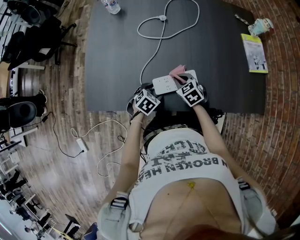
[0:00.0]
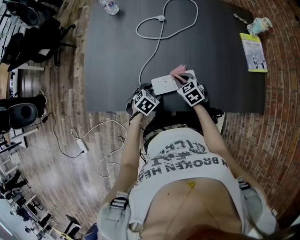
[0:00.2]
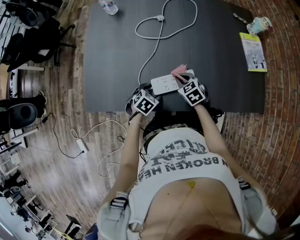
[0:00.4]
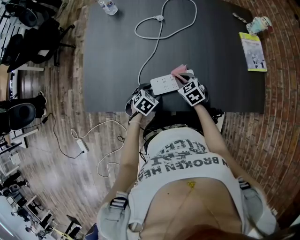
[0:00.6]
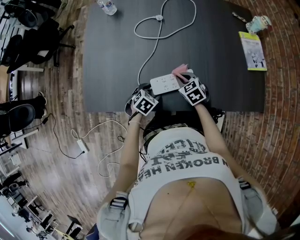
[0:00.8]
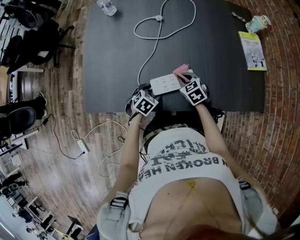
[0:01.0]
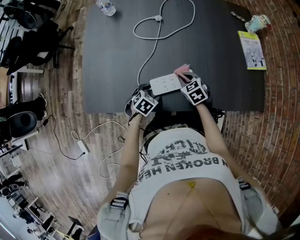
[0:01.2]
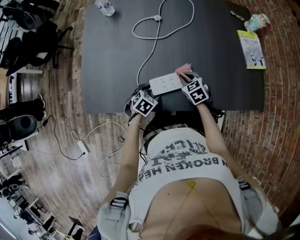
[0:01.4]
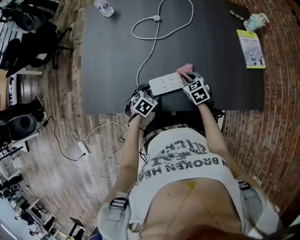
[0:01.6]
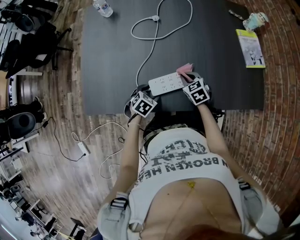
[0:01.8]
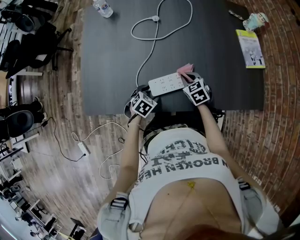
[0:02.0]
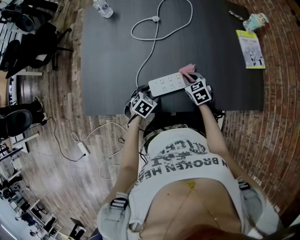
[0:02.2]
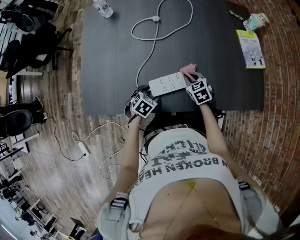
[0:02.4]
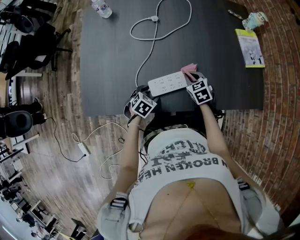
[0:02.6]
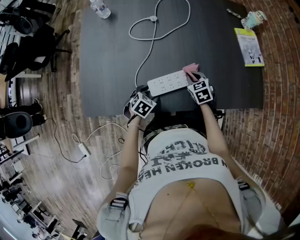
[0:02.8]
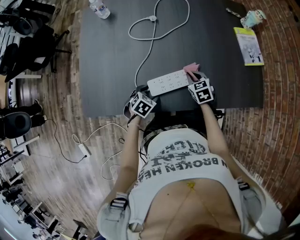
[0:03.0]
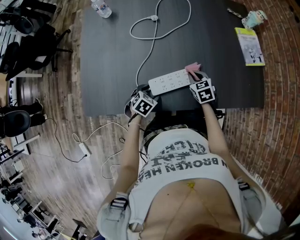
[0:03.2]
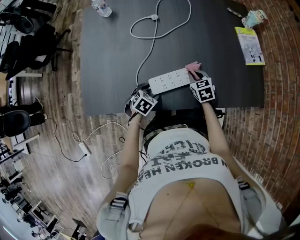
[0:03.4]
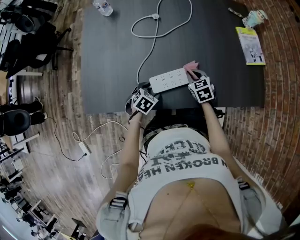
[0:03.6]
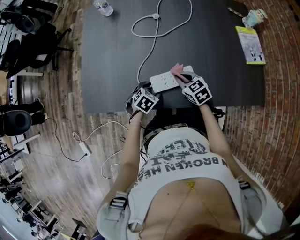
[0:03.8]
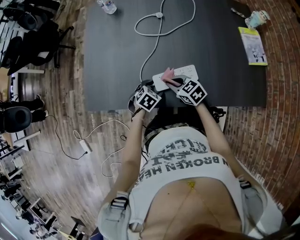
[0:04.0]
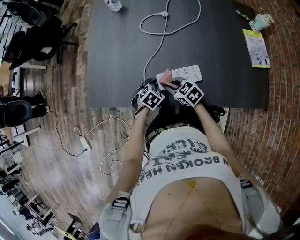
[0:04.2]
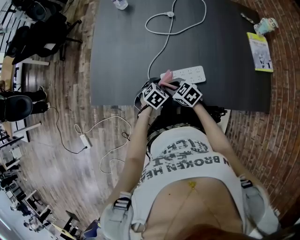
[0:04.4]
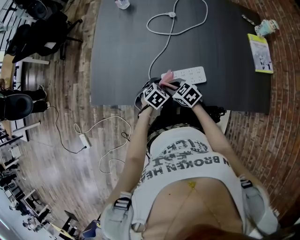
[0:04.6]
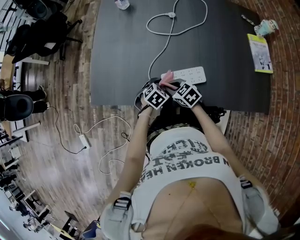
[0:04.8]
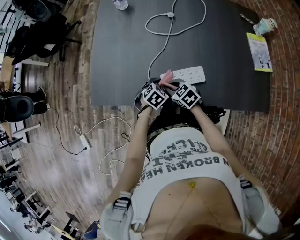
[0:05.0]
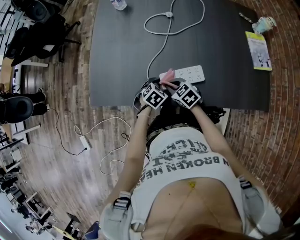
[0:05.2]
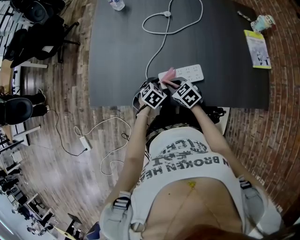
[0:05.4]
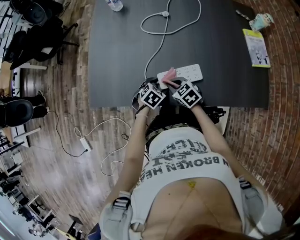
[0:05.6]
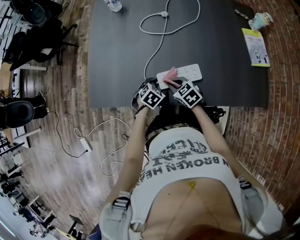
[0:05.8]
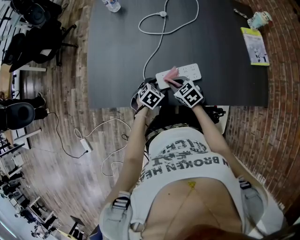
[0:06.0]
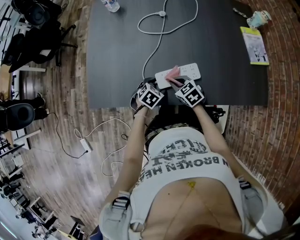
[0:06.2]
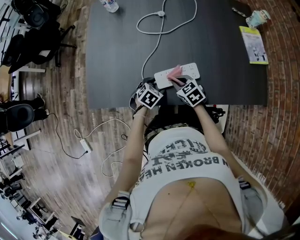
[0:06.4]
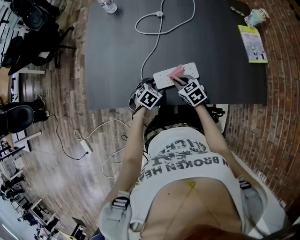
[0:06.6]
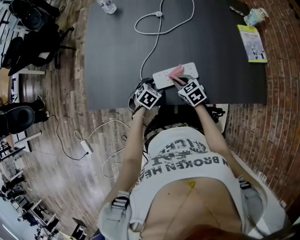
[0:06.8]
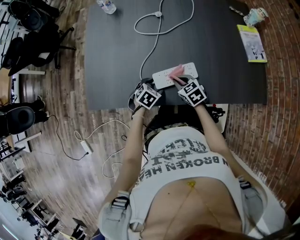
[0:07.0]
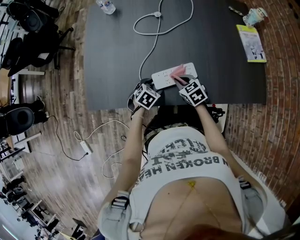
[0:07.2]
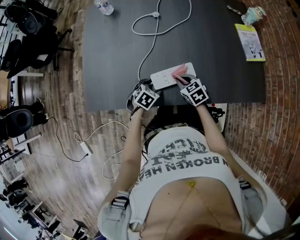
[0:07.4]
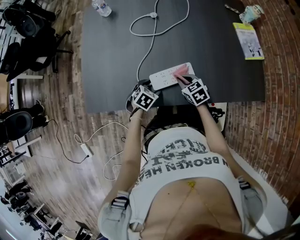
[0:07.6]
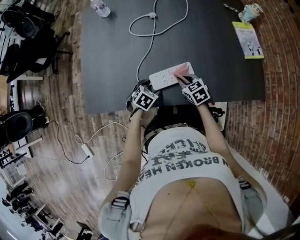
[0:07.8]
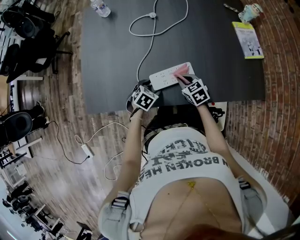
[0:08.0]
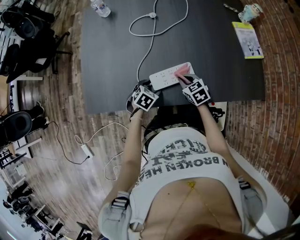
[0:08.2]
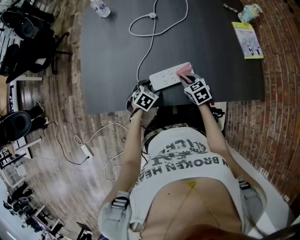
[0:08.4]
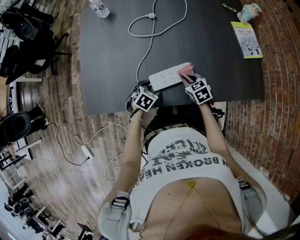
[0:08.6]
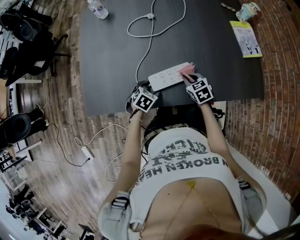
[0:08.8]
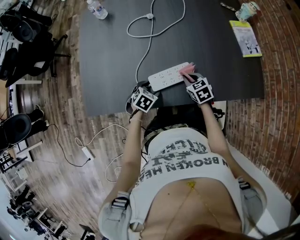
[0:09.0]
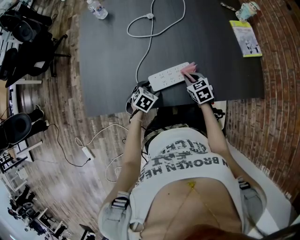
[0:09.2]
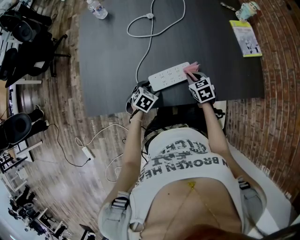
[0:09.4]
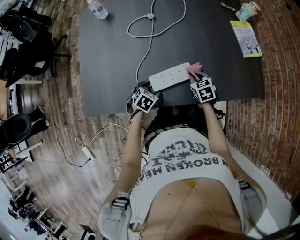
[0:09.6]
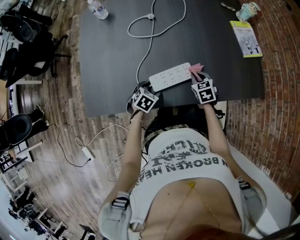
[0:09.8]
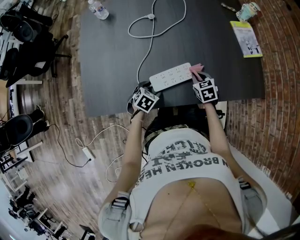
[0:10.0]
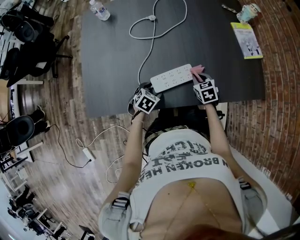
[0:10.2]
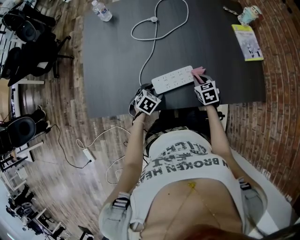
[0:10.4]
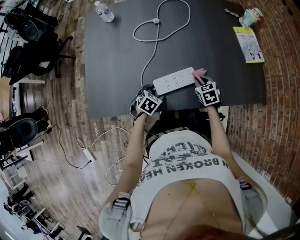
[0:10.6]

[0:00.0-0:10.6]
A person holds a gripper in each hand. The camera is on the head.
0:00.0 to 0:01.6: The right gripper heads to the right, covering roughly 5 cm.
0:01.6 to 0:03.0: The grippers make only small movements.
0:03.0 to 0:04.6: The right gripper shifts by about 20 cm, and rotates about 40 degrees.
0:04.6 to 0:06.0: The grippers move only a little.
0:06.0 to 0:07.6: The right gripper travels to the right by some 10 cm.
0:07.6 to 0:09.0: The grippers stay close to where they were, moving slightly.
0:09.0 to 0:10.6: The grippers make only small movements.

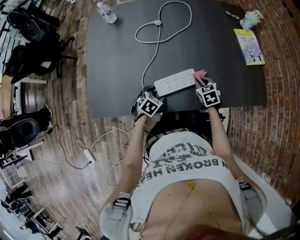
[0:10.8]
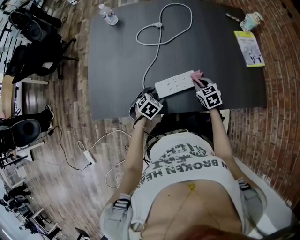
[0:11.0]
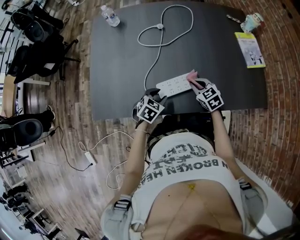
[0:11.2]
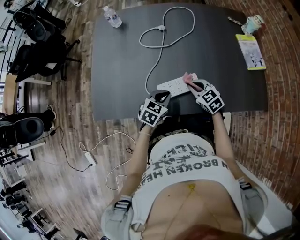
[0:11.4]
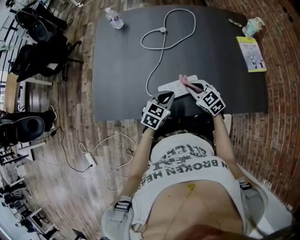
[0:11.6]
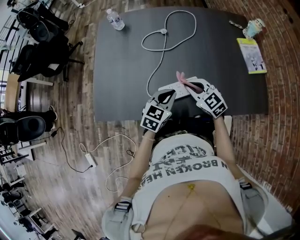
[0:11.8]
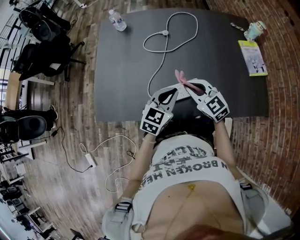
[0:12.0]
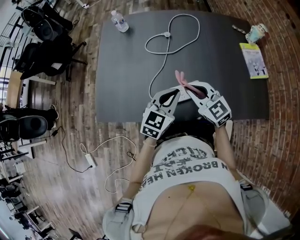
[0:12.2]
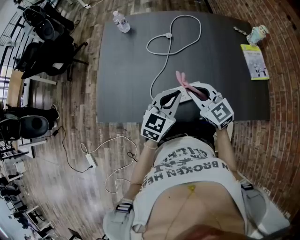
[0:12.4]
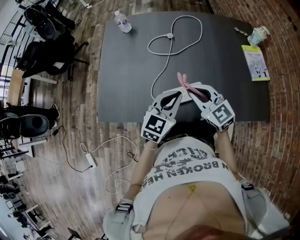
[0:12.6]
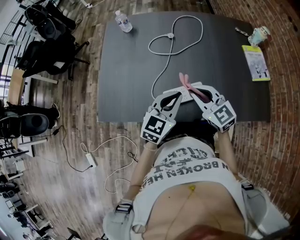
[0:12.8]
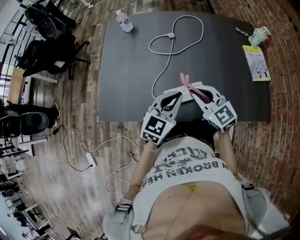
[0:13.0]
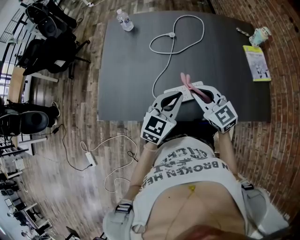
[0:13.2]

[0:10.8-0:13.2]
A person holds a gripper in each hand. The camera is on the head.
0:10.8 to 0:12.0: The left gripper moves upward, approximately 20 cm, points its fingers approximately 40 degrees further upward, and closes up; the right gripper shifts some 20 cm upward and to the left, and angles its fingers upward, by some 30 degrees.
0:12.0 to 0:13.2: The left gripper heads upward, covering roughly 5 cm.

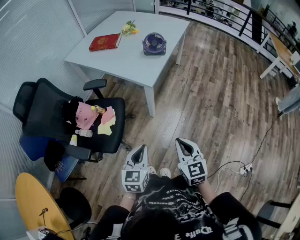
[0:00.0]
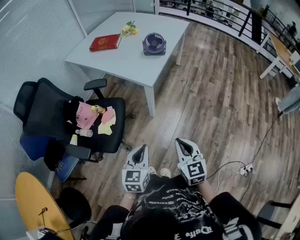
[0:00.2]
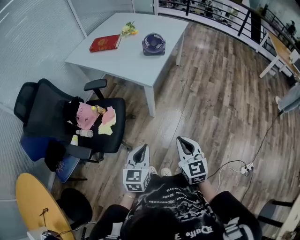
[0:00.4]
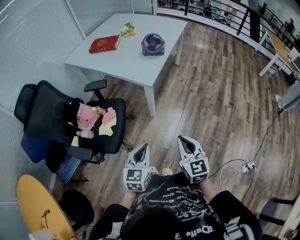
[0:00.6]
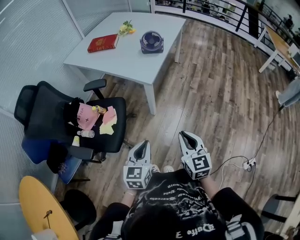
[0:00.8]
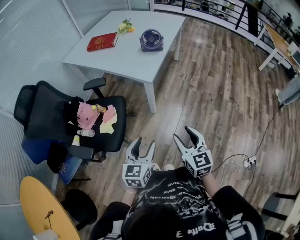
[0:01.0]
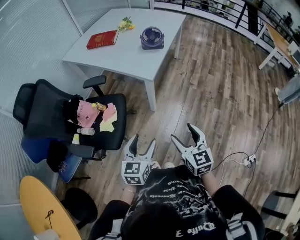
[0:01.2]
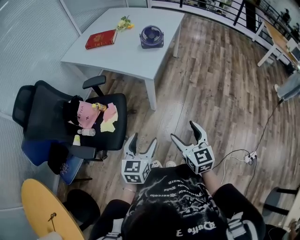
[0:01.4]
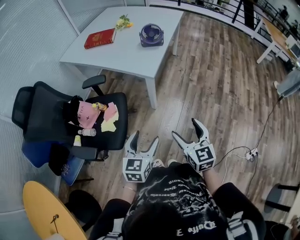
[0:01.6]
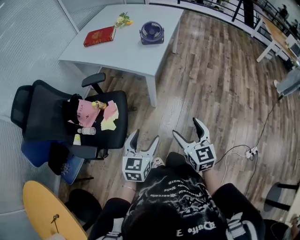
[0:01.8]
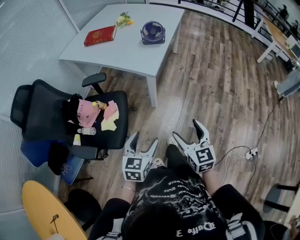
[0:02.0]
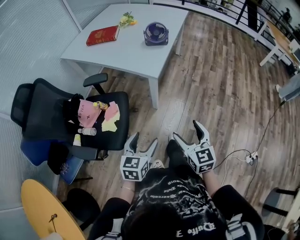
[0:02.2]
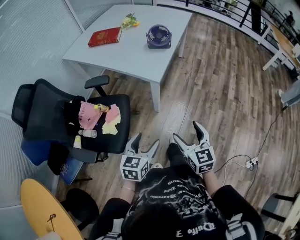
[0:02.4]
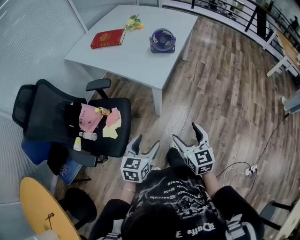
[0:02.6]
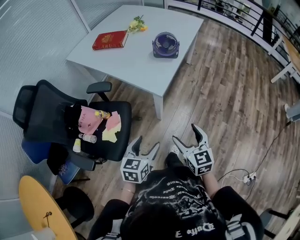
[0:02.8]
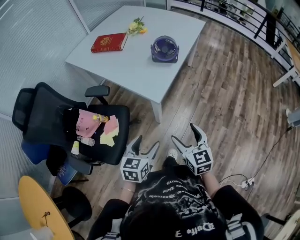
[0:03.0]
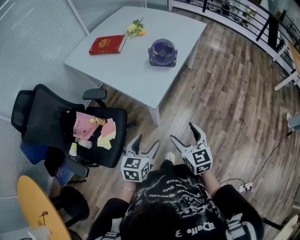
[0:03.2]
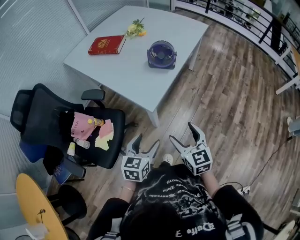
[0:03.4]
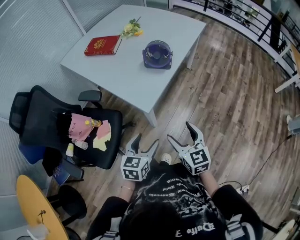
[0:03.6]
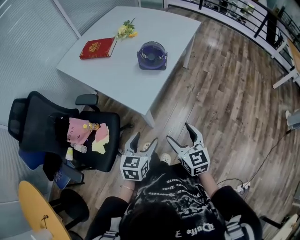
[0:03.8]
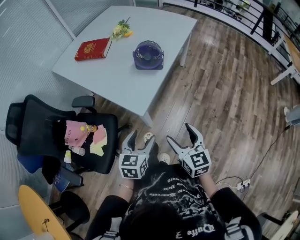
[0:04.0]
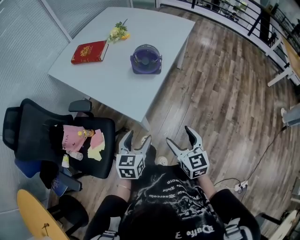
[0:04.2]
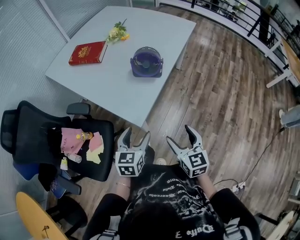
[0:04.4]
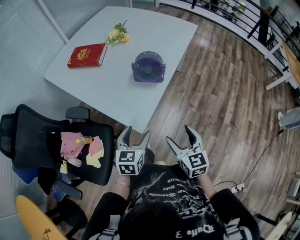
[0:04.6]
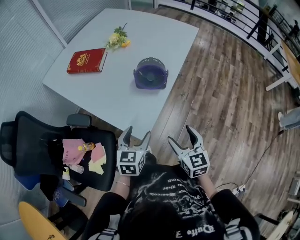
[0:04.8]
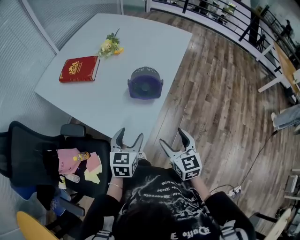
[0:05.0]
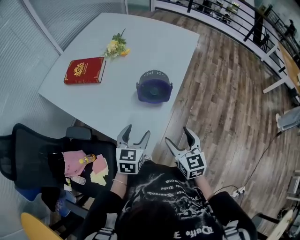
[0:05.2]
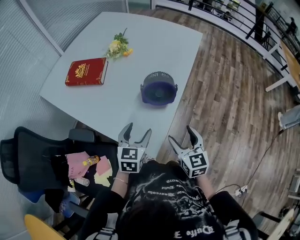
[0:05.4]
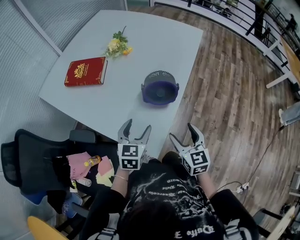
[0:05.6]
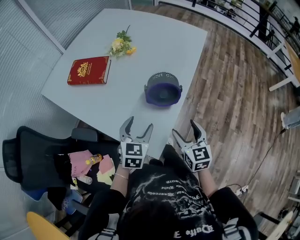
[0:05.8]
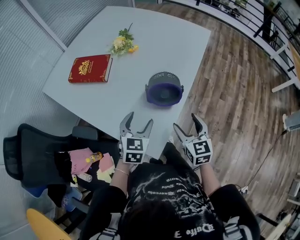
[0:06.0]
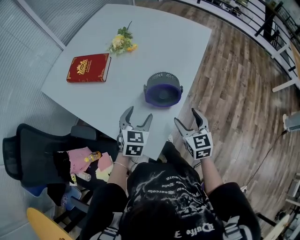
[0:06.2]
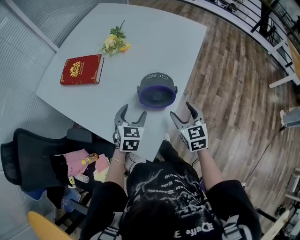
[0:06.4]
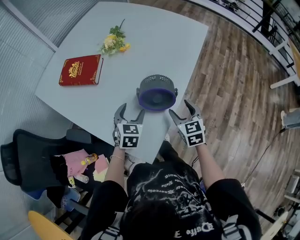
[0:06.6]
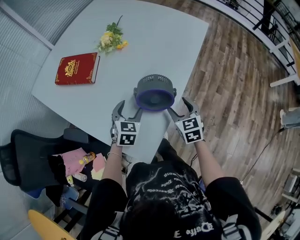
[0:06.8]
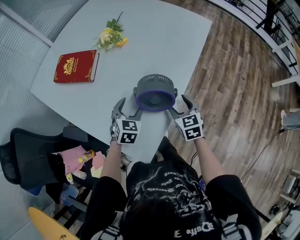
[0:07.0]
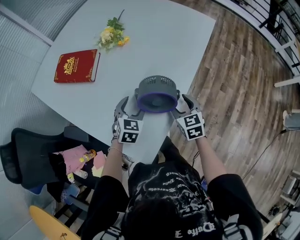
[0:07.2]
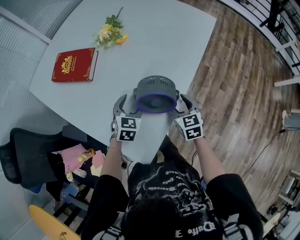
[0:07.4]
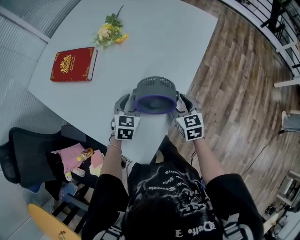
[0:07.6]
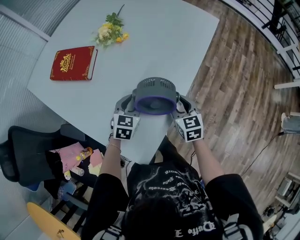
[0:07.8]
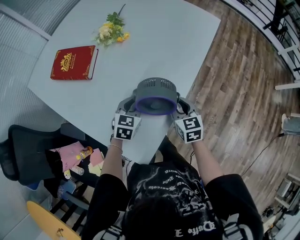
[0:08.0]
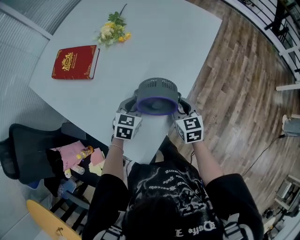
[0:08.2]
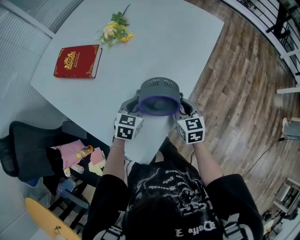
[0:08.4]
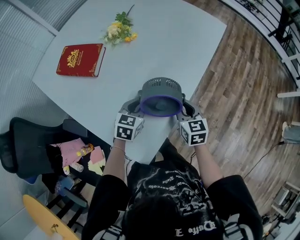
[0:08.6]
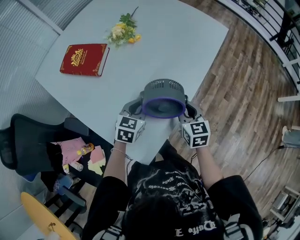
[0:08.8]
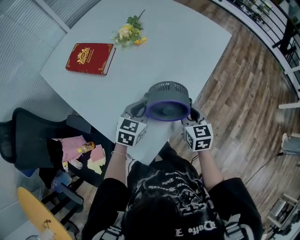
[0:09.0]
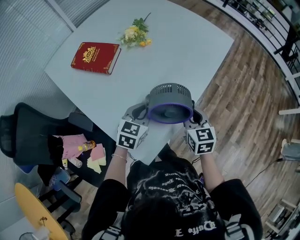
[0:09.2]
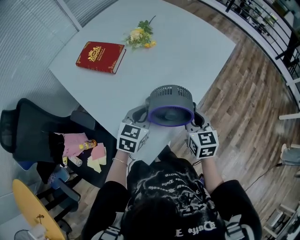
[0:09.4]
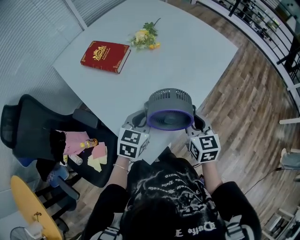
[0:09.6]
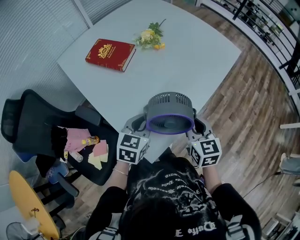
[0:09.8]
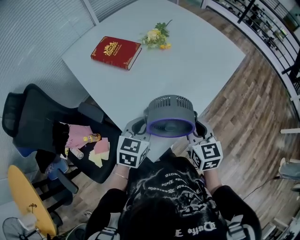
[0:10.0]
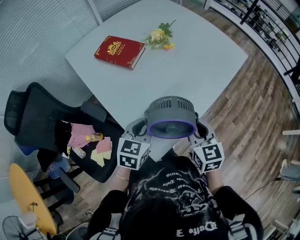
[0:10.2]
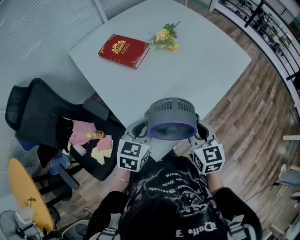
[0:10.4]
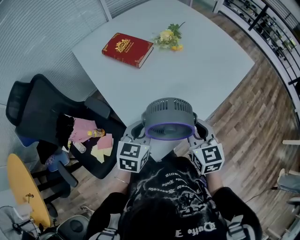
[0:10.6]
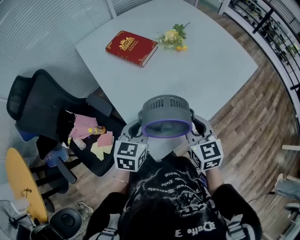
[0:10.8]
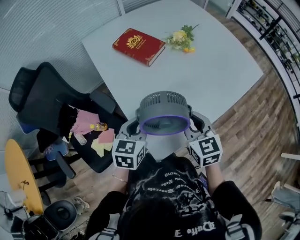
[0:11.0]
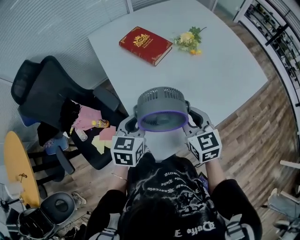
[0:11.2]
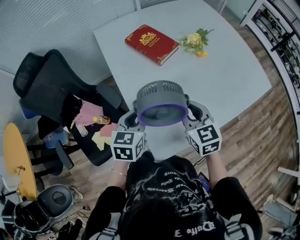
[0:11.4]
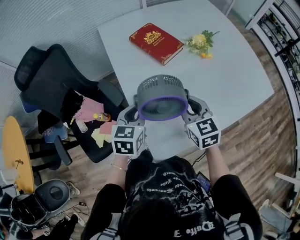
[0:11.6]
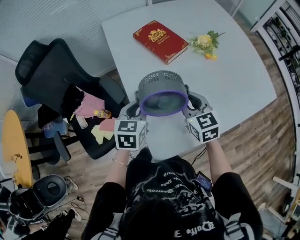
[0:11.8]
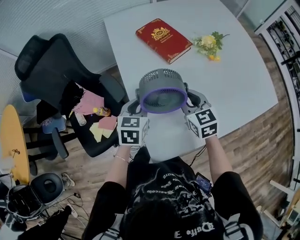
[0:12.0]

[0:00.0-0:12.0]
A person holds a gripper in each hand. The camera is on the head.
0:00.0 to 0:01.6: The left gripper opens, while the right gripper opens.
0:01.6 to 0:03.0: The grippers both shift forward by some 20 cm.
0:03.0 to 0:04.4: The right gripper shifts about 15 cm forward and to the right. Meanwhile the left gripper shifts some 20 cm forward.
0:04.4 to 0:06.0: The grippers both shift forward by roughly 25 cm.
0:06.0 to 0:07.6: The grippers both shift forward and downward by approximately 20 cm.
0:07.6 to 0:09.0: The grippers both shift upward by approximately 5 cm. The left gripper closes its fingers. Meanwhile the right gripper closes.
0:09.0 to 0:10.4: The right gripper moves upward, backward and to the left, approximately 15 cm; the left gripper is displaced backward, upward and to the left by about 15 cm.
0:10.4 to 0:12.0: The right gripper moves about 20 cm, and swivels some 30 degrees; the left gripper ends up about 15 cm from where it was, and rotates about 30 degrees.
